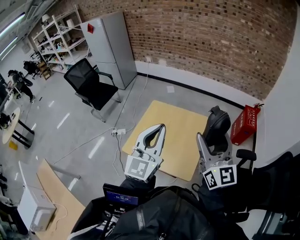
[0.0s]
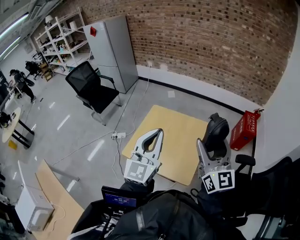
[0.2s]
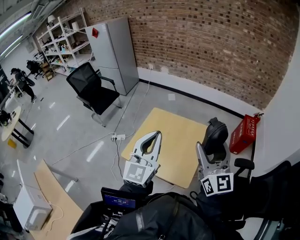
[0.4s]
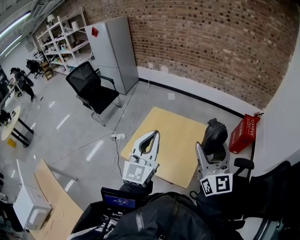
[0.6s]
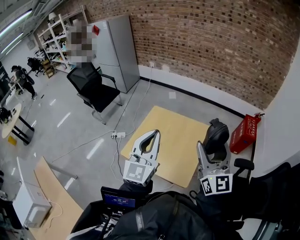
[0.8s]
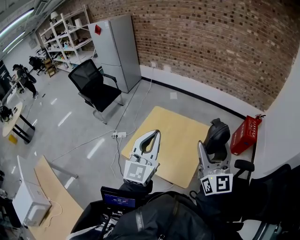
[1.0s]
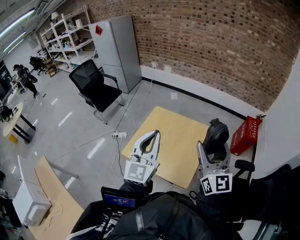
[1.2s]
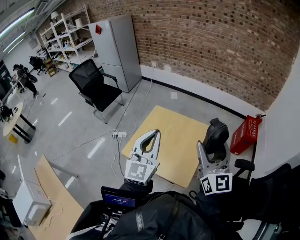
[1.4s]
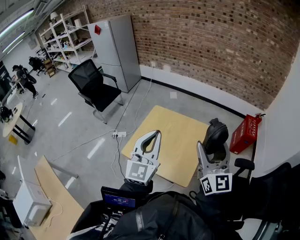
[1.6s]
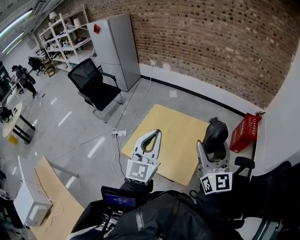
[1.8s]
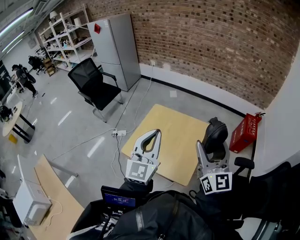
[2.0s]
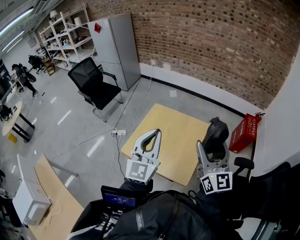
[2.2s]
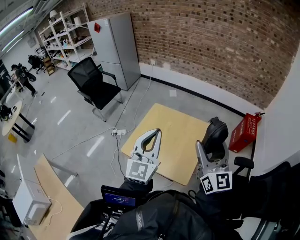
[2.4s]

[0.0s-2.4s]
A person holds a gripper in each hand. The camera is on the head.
0.0s to 1.2s: The grippers move only a little.
1.2s to 2.4s: Both grippers stay put.

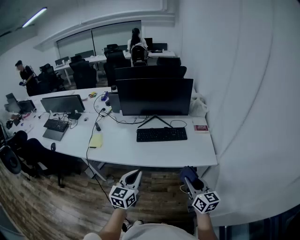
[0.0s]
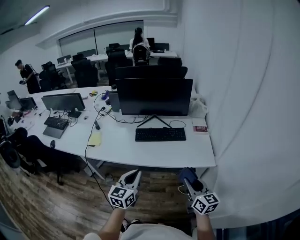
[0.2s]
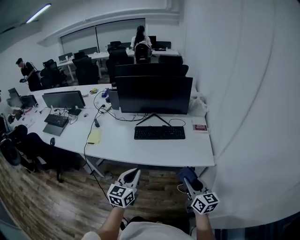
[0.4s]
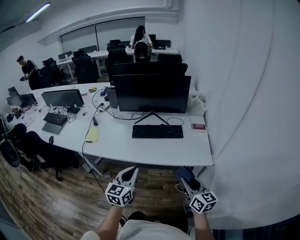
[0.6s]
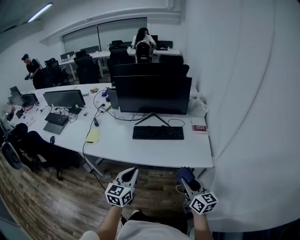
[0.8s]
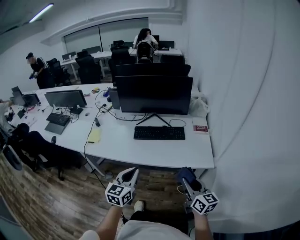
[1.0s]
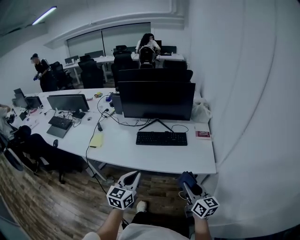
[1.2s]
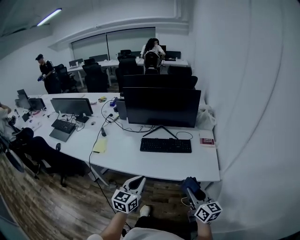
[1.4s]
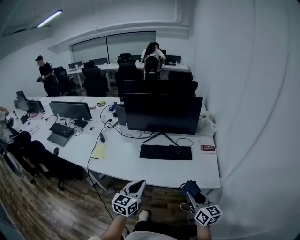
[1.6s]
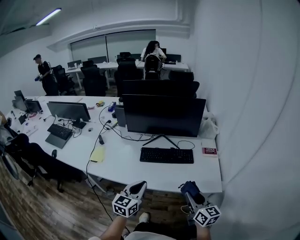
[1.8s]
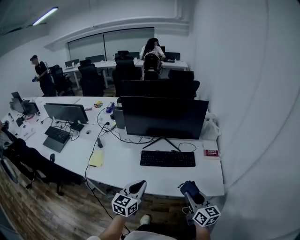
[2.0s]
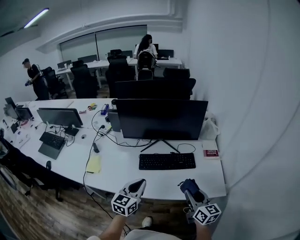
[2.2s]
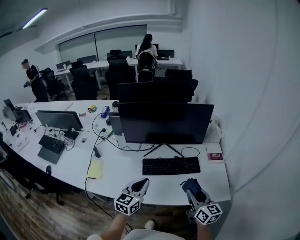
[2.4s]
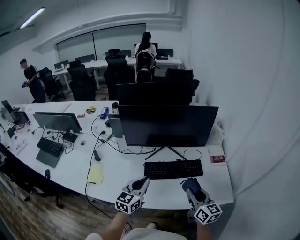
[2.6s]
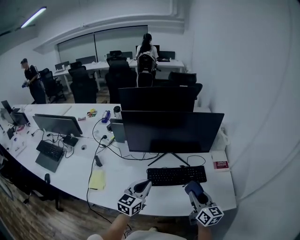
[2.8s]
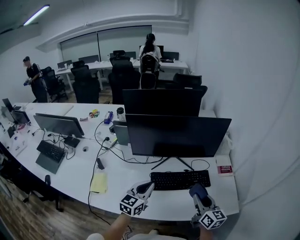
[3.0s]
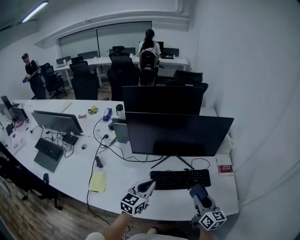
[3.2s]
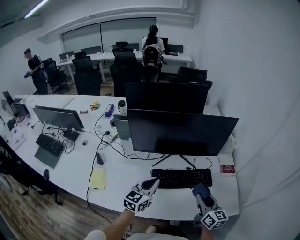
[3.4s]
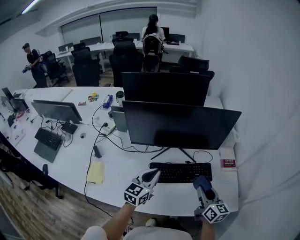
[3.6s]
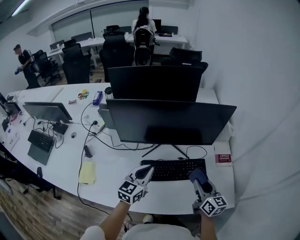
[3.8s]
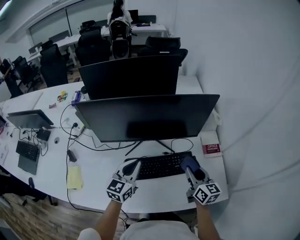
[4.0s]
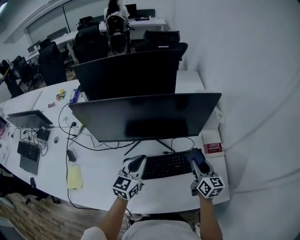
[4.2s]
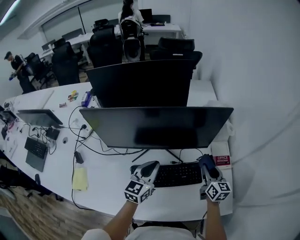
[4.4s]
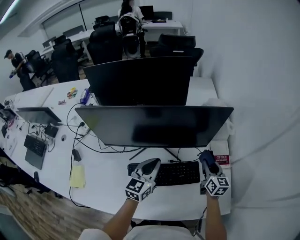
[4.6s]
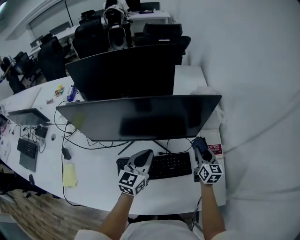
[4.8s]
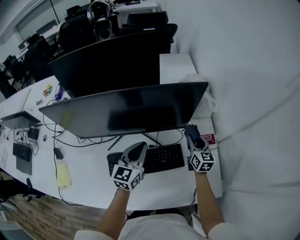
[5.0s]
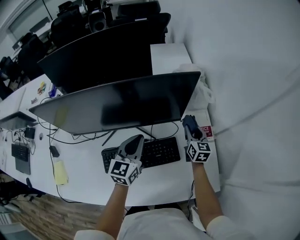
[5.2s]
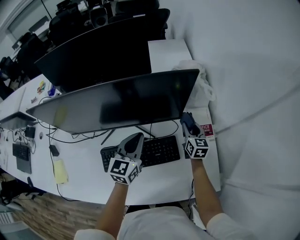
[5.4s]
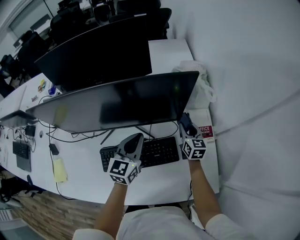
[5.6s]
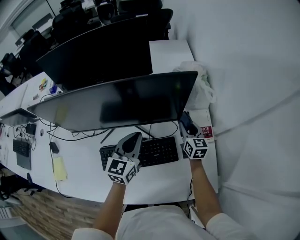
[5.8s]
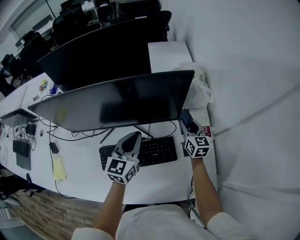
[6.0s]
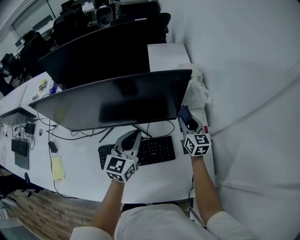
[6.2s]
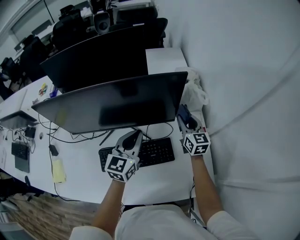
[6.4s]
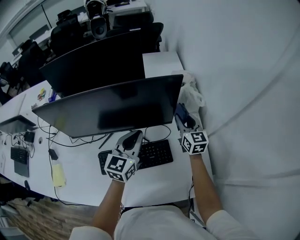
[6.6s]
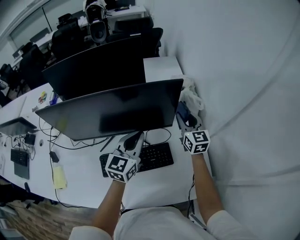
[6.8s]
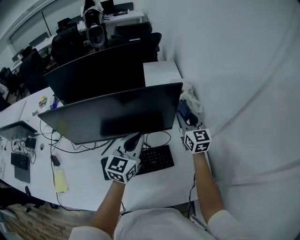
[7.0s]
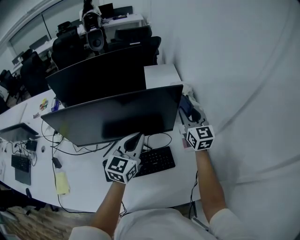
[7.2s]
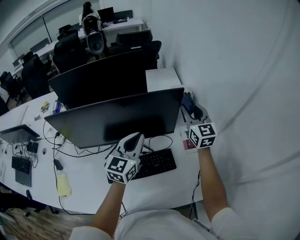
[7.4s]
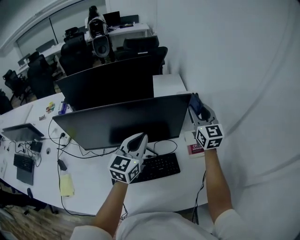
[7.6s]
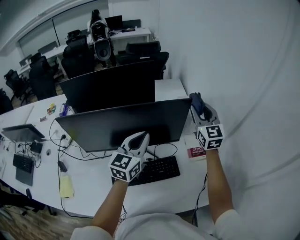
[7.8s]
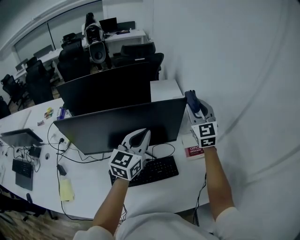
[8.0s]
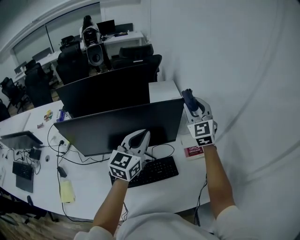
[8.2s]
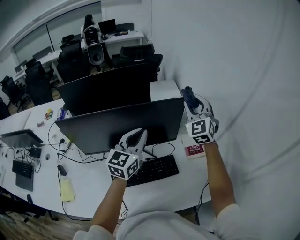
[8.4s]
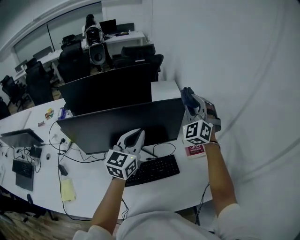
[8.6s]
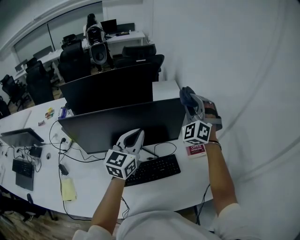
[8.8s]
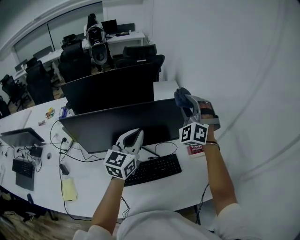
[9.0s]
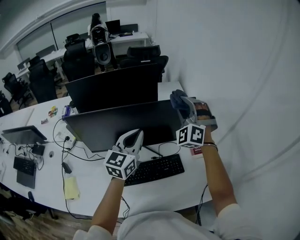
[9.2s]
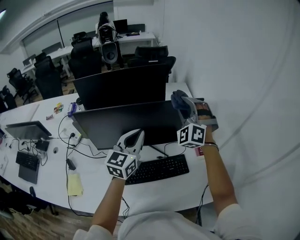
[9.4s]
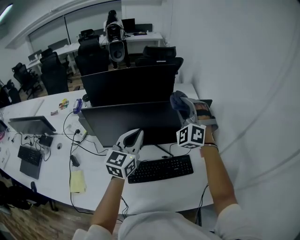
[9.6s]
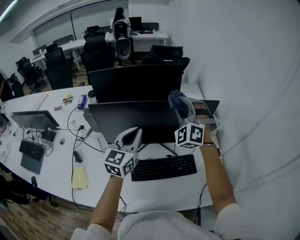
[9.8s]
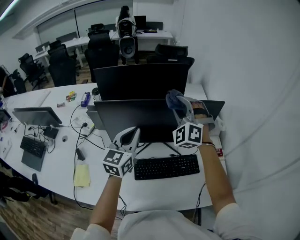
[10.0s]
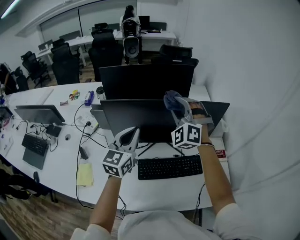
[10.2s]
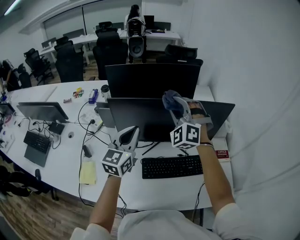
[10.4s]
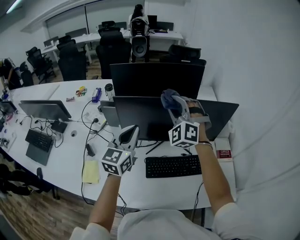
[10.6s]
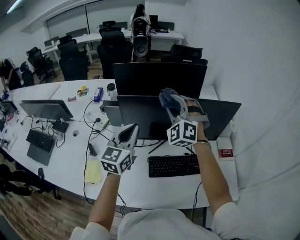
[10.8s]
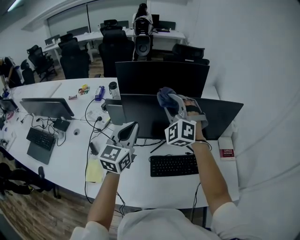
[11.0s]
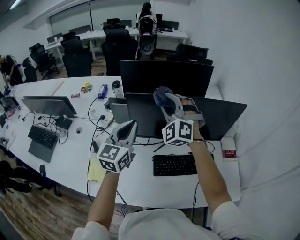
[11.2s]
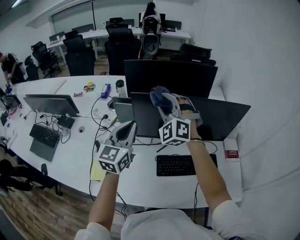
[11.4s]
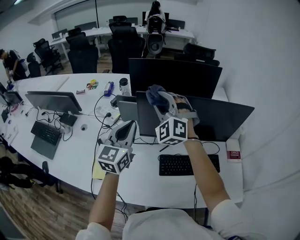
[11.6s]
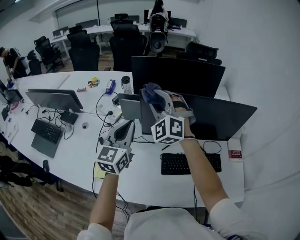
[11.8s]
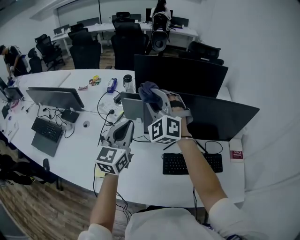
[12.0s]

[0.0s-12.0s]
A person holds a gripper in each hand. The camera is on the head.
0.0s to 1.6s: The two grippers go some 5 cm forward.
1.6s to 3.0s: The grippers both shift forward and to the left by about 30 cm.
3.0s to 4.4s: Both grippers travel together forward and to the right, roughly 25 cm.
4.4s to 6.0s: The left gripper goes roughly 10 cm to the right and forward; the right gripper moves forward and downward, approximately 15 cm.
6.0s to 7.6s: The left gripper is displaced upward by roughly 15 cm; the right gripper travels upward by approximately 25 cm, and changes its angle by roughly 30 degrees.
7.6s to 9.0s: The left gripper moves about 5 cm; the right gripper shifts approximately 10 cm to the left and upward, and rotates around the line of its fingers by approximately 60 degrees, counterclockwise from behind.
9.0s to 10.4s: Both grippers travel together to the left, some 25 cm.
10.4s to 12.0s: Both grippers move to the left, approximately 20 cm.

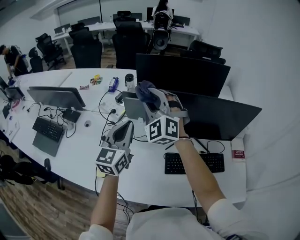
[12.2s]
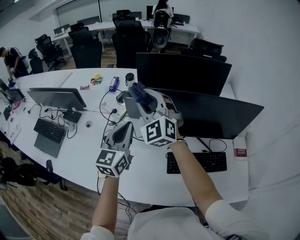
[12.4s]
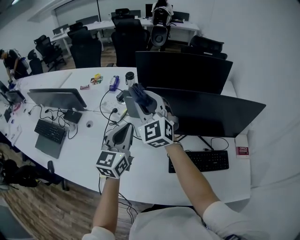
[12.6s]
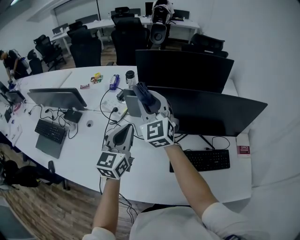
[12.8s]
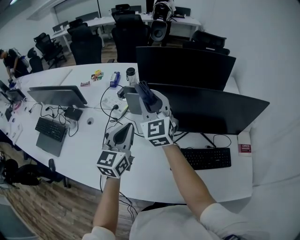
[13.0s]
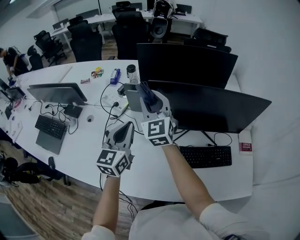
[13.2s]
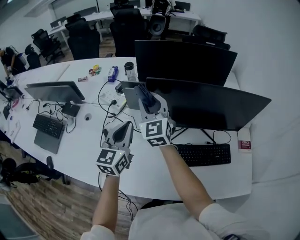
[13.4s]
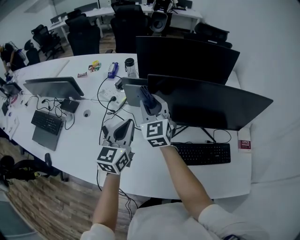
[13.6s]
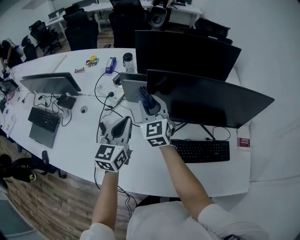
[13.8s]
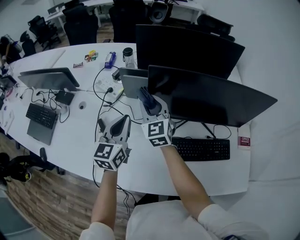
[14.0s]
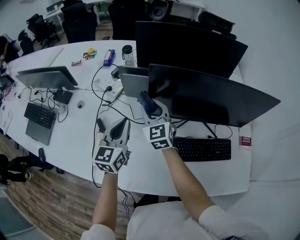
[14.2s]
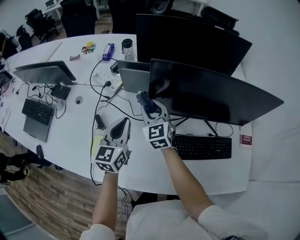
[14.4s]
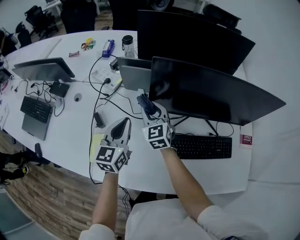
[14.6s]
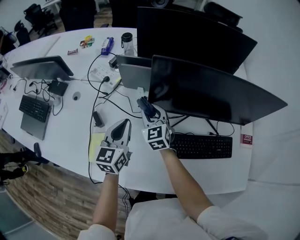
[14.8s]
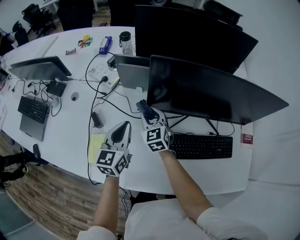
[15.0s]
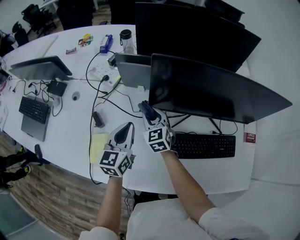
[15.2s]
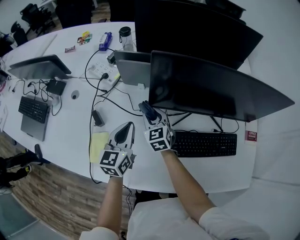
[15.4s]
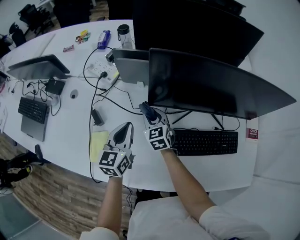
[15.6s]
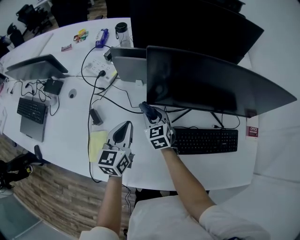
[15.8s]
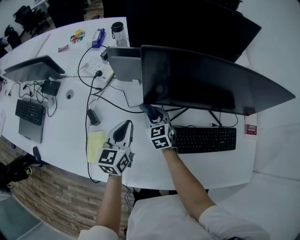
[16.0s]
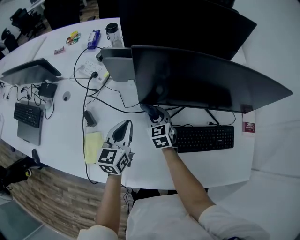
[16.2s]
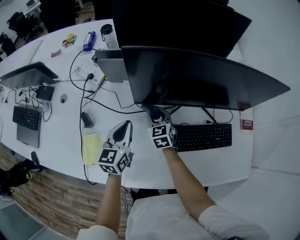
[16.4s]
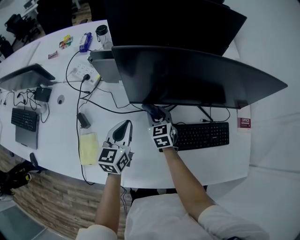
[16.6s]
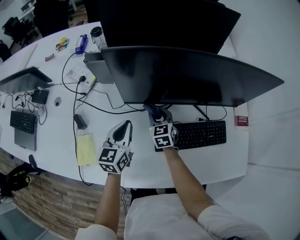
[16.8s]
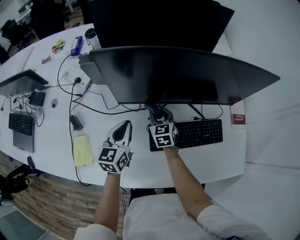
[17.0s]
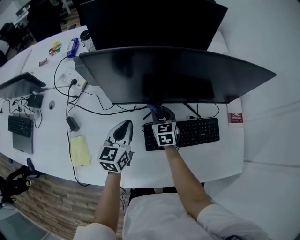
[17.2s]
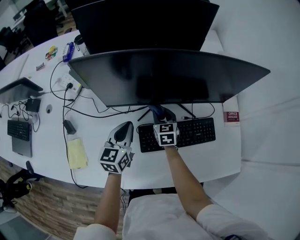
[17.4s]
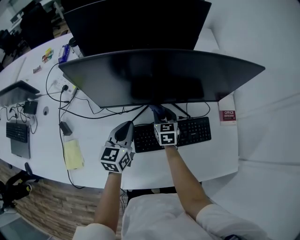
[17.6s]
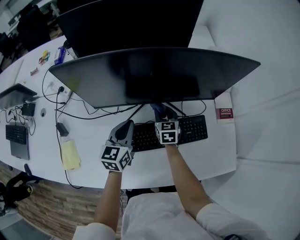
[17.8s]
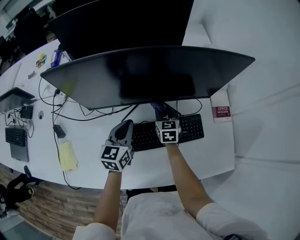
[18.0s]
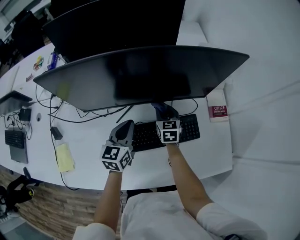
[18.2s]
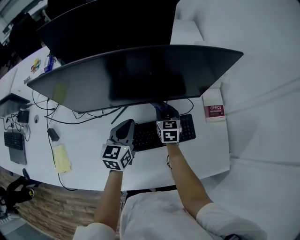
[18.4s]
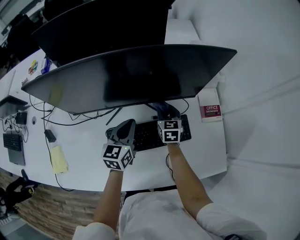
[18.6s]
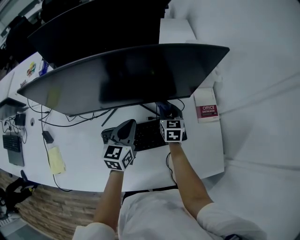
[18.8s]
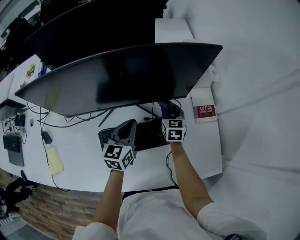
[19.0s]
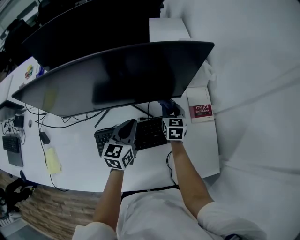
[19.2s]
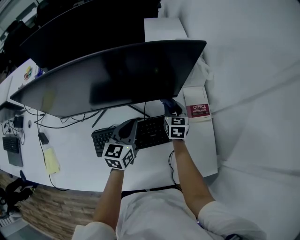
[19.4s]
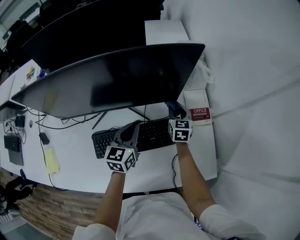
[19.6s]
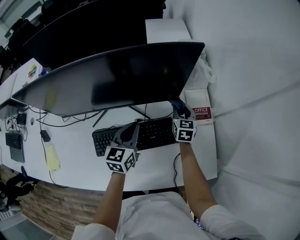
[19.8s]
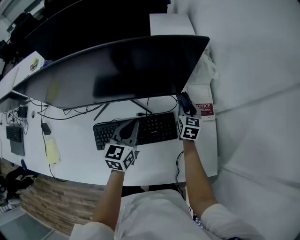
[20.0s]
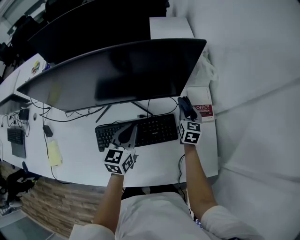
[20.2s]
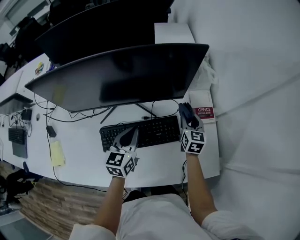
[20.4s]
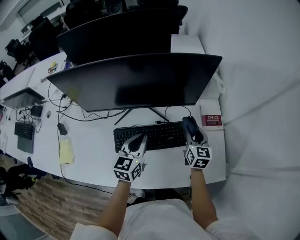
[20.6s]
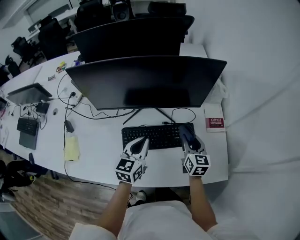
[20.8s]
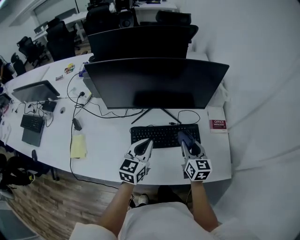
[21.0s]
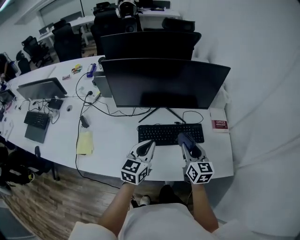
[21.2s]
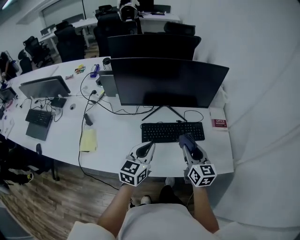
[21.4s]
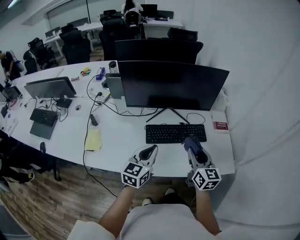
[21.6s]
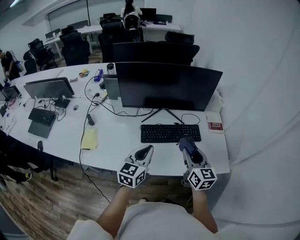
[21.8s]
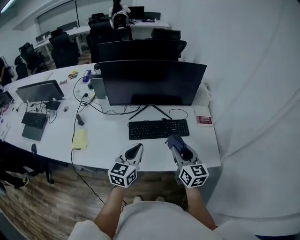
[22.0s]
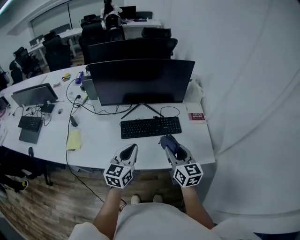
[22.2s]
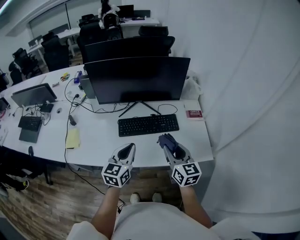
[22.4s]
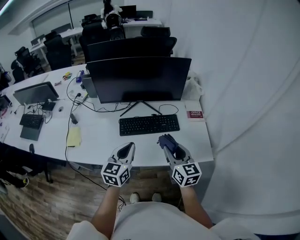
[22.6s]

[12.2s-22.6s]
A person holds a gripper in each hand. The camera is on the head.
12.2s to 13.6s: The left gripper travels downward by roughly 5 cm. Meanwhile the right gripper shifts about 10 cm downward, and swivels about 40 degrees.
13.6s to 15.2s: The right gripper is displaced downward by roughly 25 cm, and changes its angle by some 20 degrees. The left gripper is displaced downward by about 15 cm.
15.2s to 16.6s: The right gripper shifts some 10 cm to the right. The left gripper travels to the right by about 5 cm.
16.6s to 18.2s: Both grippers travel together to the right, approximately 25 cm. The right gripper swivels approximately 20 degrees.
18.2s to 19.6s: Both grippers travel together to the right, about 20 cm.
19.6s to 21.2s: The left gripper travels backward, to the left and upward by roughly 25 cm, while the right gripper heads backward, upward and to the left, covering about 35 cm, and turns by approximately 20 degrees.
21.2s to 22.6s: The right gripper goes some 15 cm backward and upward. The left gripper moves backward, some 10 cm.
